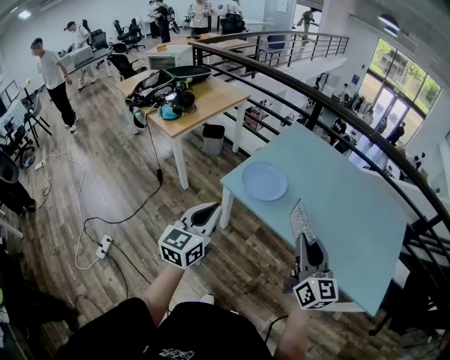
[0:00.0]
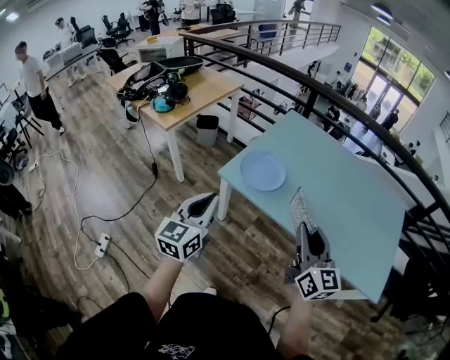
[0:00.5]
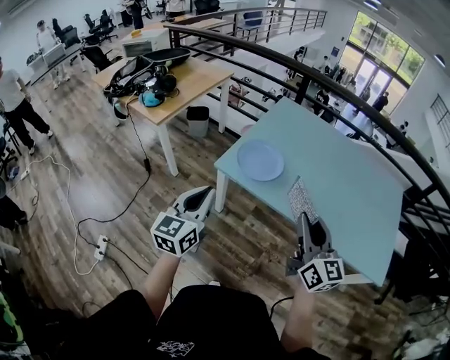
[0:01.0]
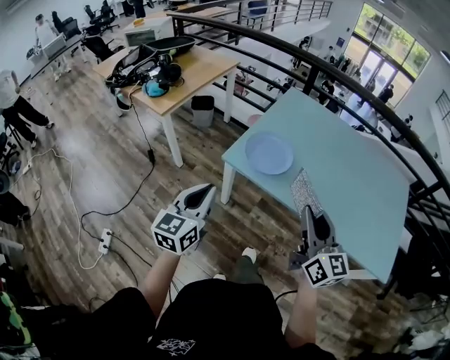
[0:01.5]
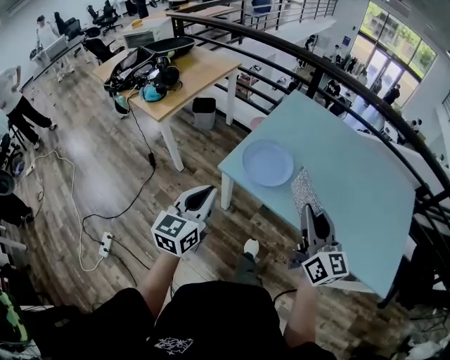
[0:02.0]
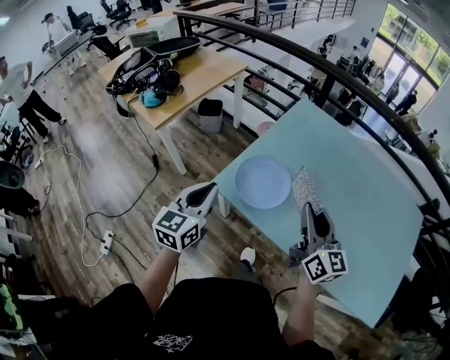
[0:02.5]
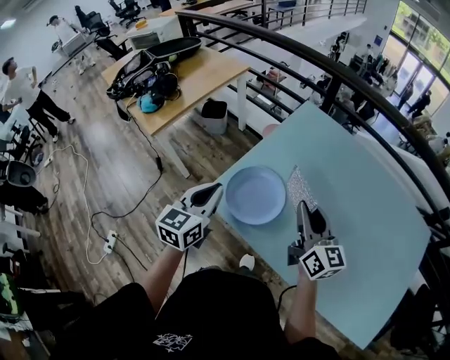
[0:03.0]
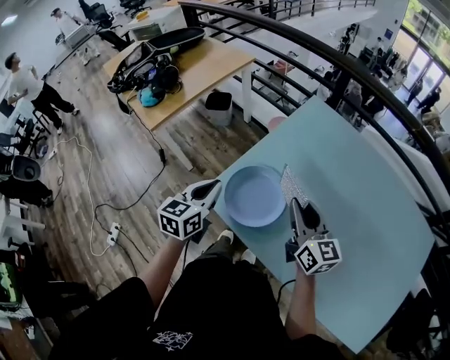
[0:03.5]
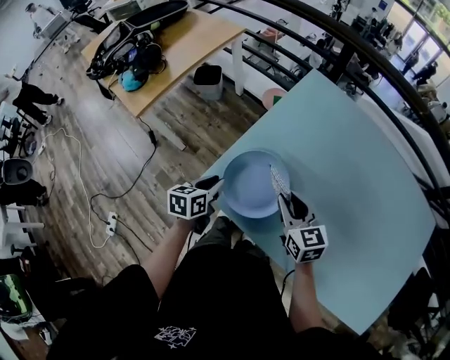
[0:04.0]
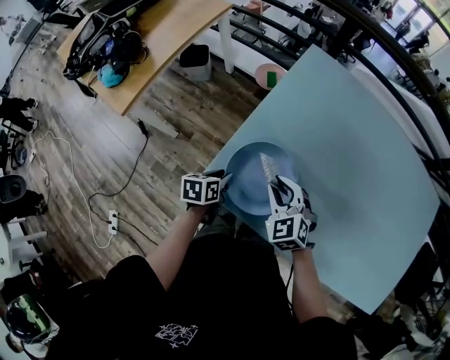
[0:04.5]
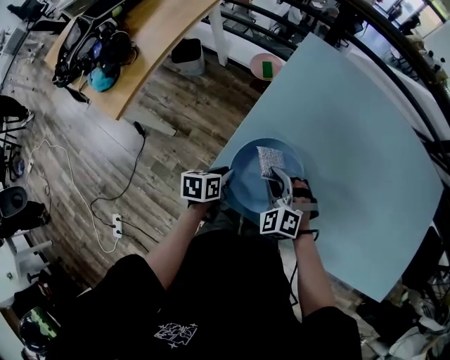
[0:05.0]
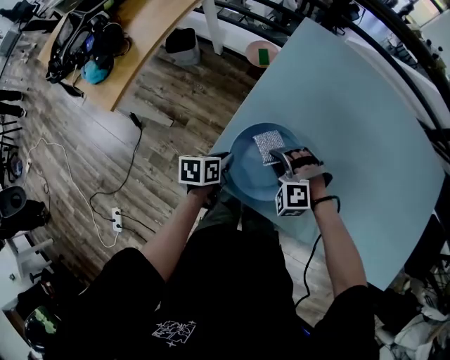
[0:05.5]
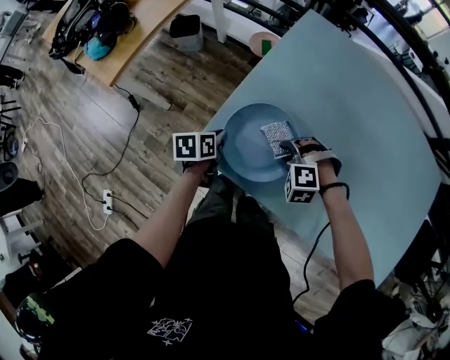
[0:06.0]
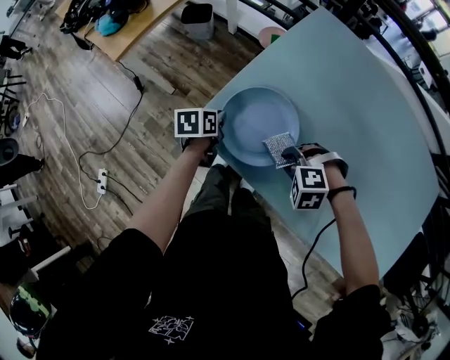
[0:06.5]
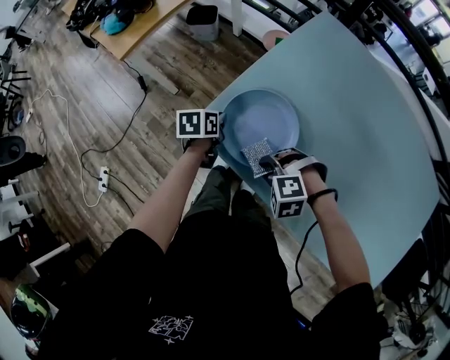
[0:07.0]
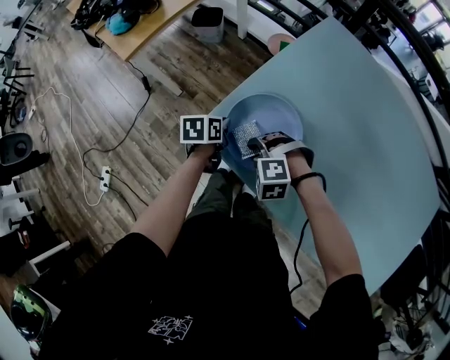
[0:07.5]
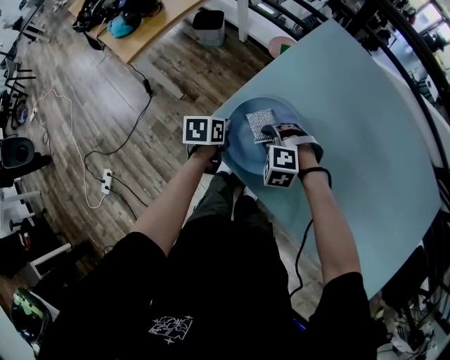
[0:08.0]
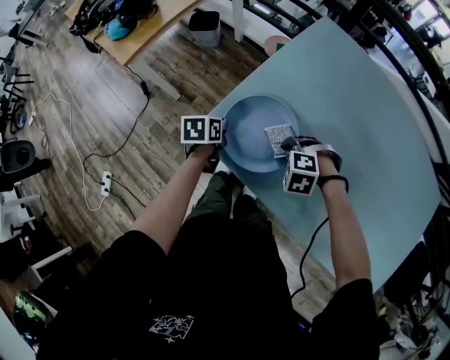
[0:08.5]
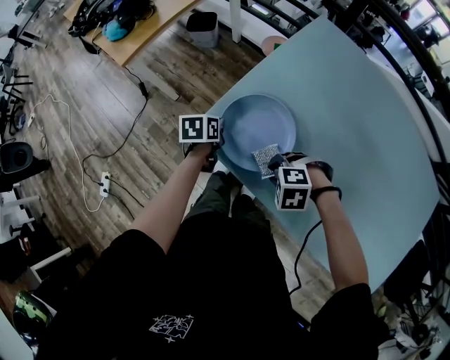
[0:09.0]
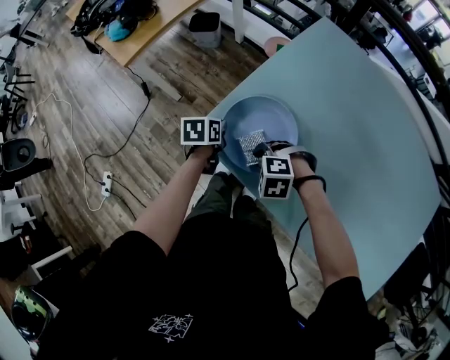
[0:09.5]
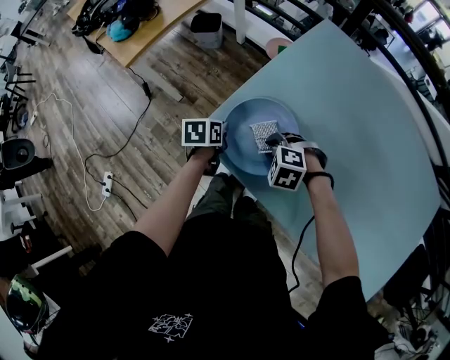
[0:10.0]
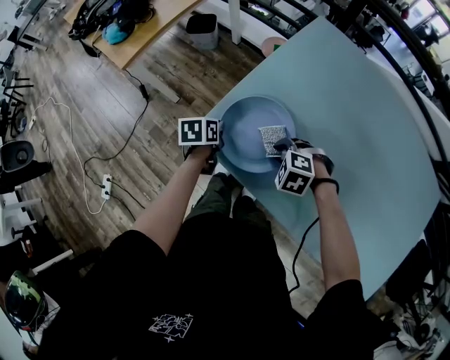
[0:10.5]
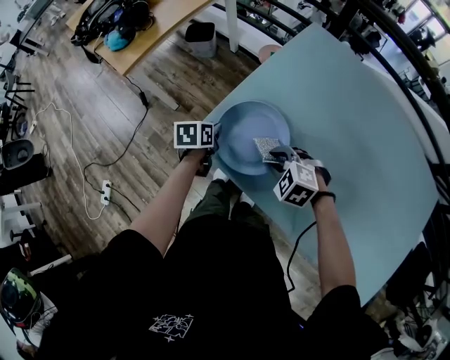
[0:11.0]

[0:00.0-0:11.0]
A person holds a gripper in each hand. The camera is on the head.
0:00.0 to 0:02.0: The right gripper shifts about 10 cm forward. The left gripper goes approximately 10 cm forward, downward and to the left.
0:02.0 to 0:03.5: The left gripper is displaced forward and to the right by roughly 30 cm, while the right gripper travels forward by approximately 30 cm.
0:03.5 to 0:05.5: The left gripper goes some 25 cm downward, rotates about 40 degrees, and opens, then closes again; the right gripper travels downward and to the left by about 30 cm, and twists about 80 degrees counterclockwise, seen from behind.
0:05.5 to 0:07.5: The right gripper ends up approximately 10 cm from where it was, and swivels some 20 degrees.
0:07.5 to 0:09.0: The right gripper ends up about 10 cm from where it was.
0:09.0 to 0:11.0: The right gripper turns by roughly 30 degrees.

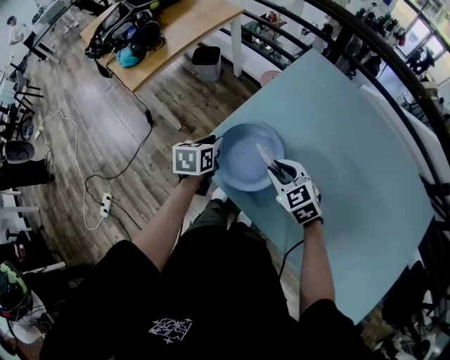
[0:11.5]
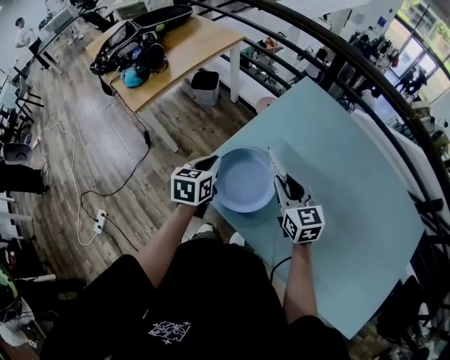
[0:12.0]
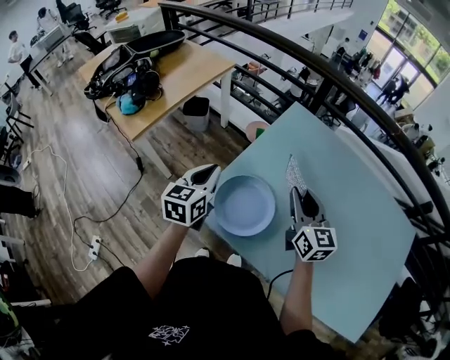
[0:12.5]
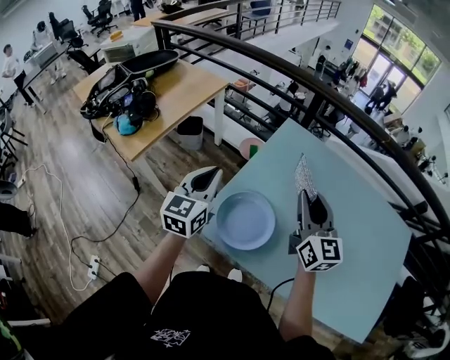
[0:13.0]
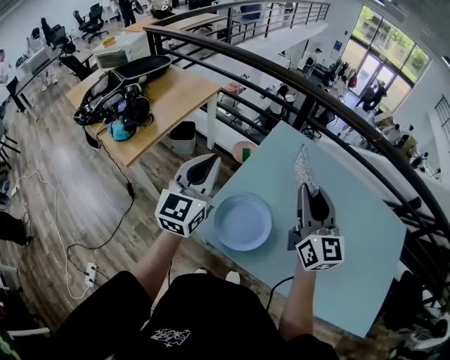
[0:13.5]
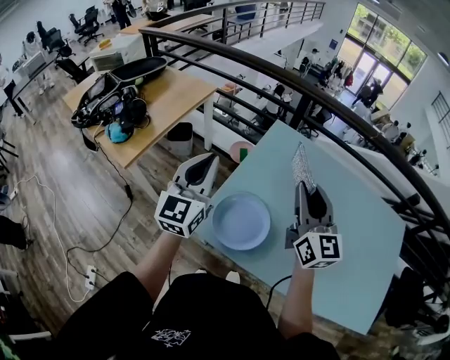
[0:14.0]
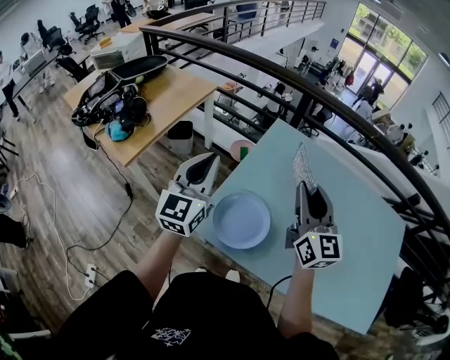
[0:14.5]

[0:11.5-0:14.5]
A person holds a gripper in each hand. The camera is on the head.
0:11.5 to 0:13.0: Both grippers move upward, about 25 cm. The left gripper tilts its fingers roughly 40 degrees upward. The right gripper tips its fingers upward by some 40 degrees.
0:13.0 to 0:14.5: The grippers both shift upward by approximately 5 cm.

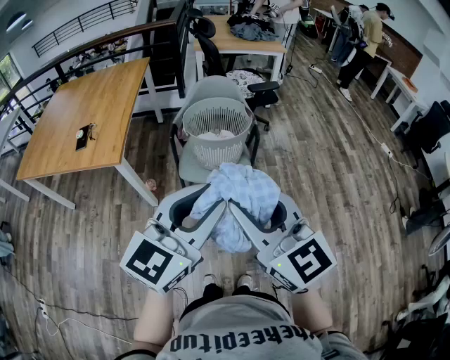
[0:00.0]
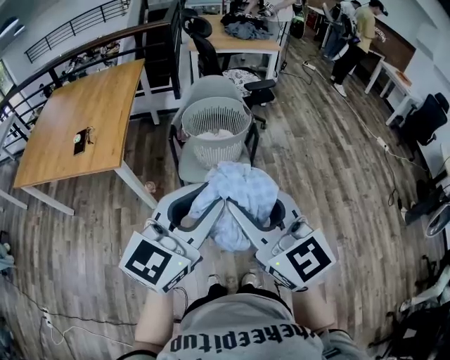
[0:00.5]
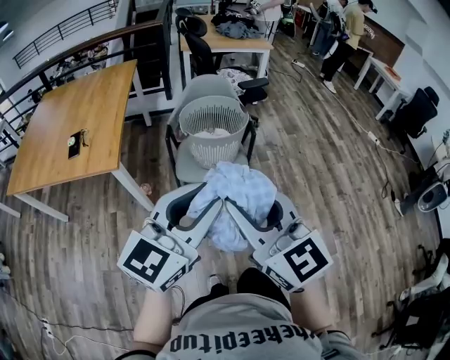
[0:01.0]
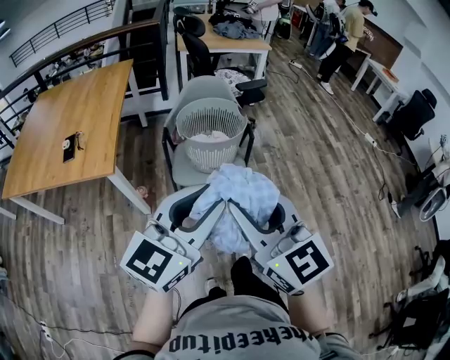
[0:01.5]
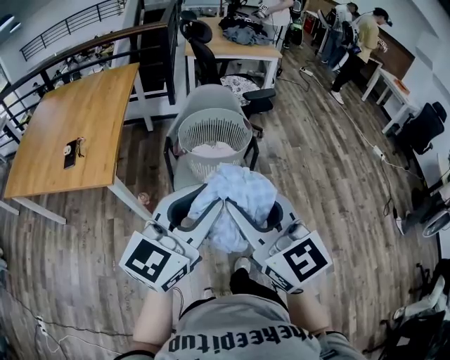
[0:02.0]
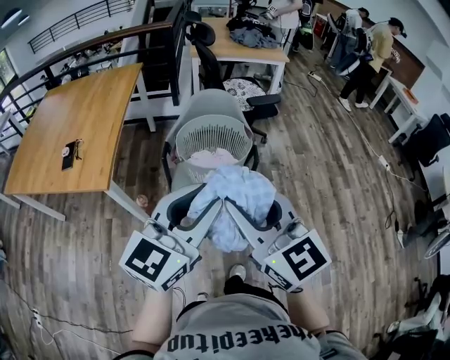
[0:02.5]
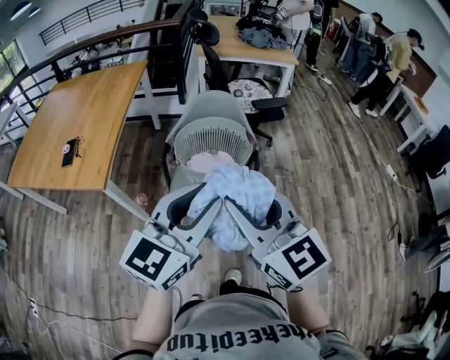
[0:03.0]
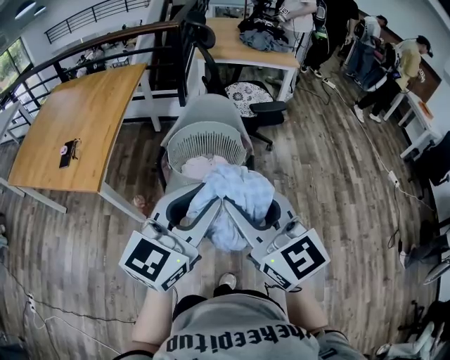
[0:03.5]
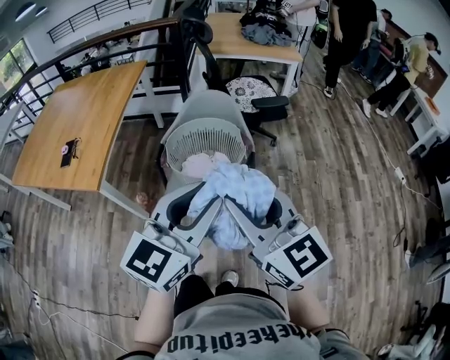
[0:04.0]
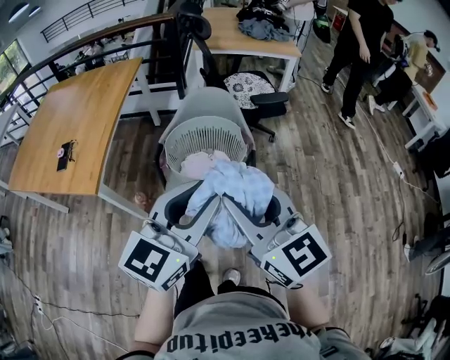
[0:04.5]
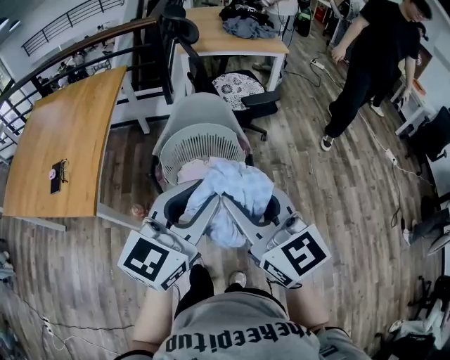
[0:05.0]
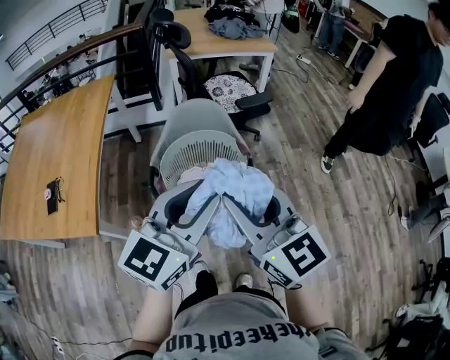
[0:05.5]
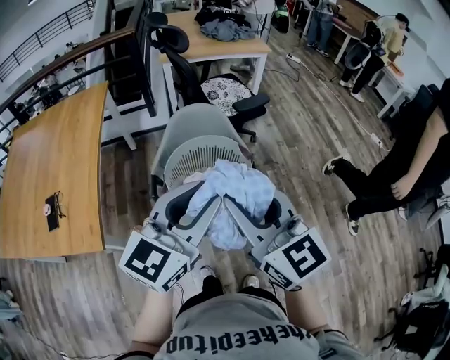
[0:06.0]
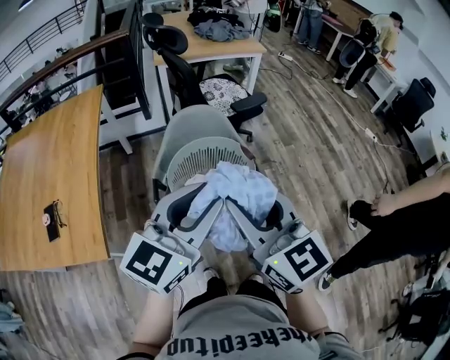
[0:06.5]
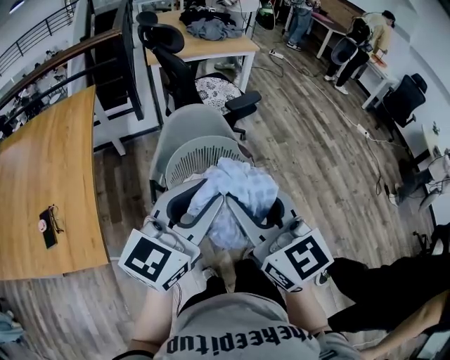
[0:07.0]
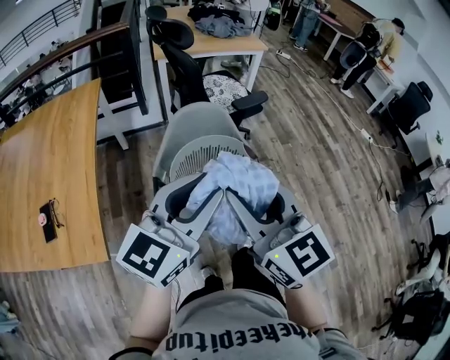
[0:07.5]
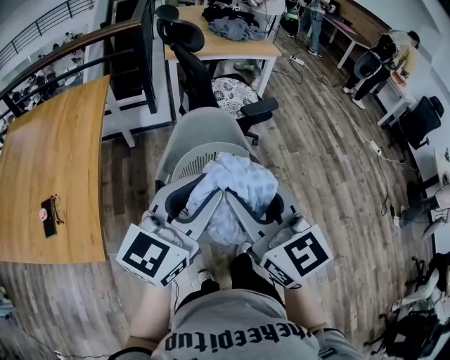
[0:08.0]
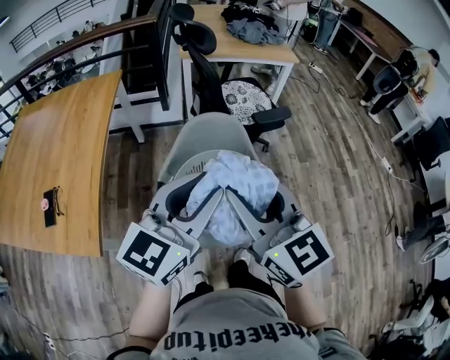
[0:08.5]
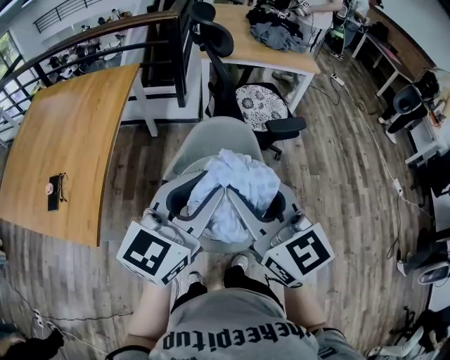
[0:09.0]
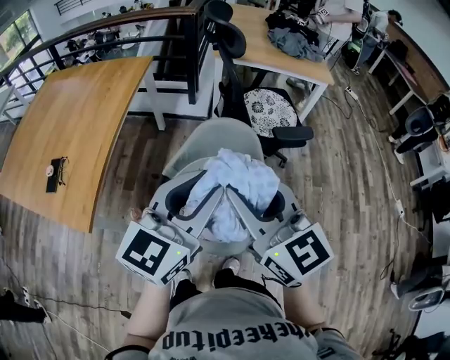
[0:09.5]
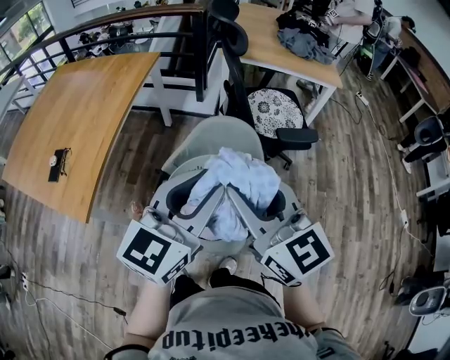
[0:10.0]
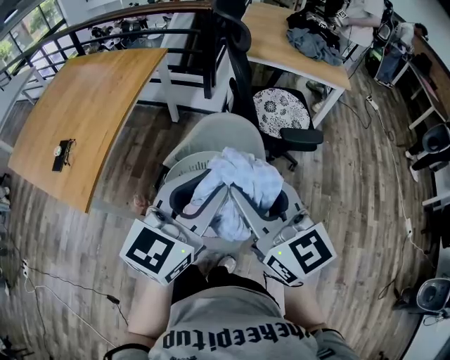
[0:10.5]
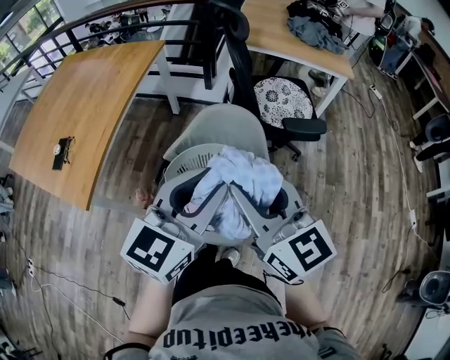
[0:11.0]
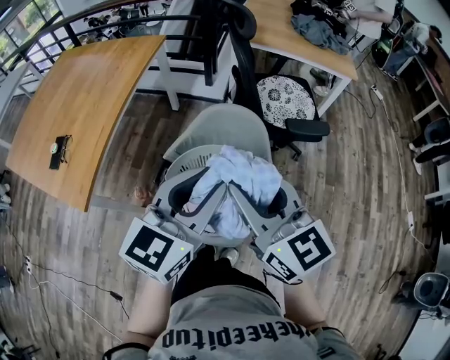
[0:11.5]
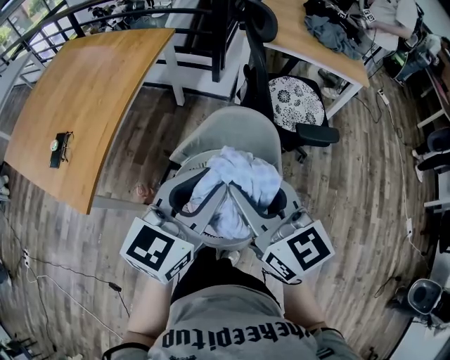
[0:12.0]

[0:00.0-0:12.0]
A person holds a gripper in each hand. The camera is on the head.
0:00.0 to 0:02.0: The two grippers go approximately 10 cm forward.
0:02.0 to 0:04.0: Both grippers travel together to the right and forward, about 15 cm.
0:04.0 to 0:06.0: The right gripper is displaced to the left and forward by roughly 15 cm; the left gripper travels forward and to the left by about 15 cm.
0:06.0 to 0:08.0: The grippers both shift forward by some 5 cm.
0:08.0 to 0:10.0: The right gripper heads forward and to the right, covering about 10 cm, and swivels approximately 20 degrees. Meanwhile the left gripper is displaced to the right and forward by approximately 10 cm, and changes its angle by about 20 degrees.
0:10.0 to 0:12.0: The two grippers go approximately 5 cm forward.

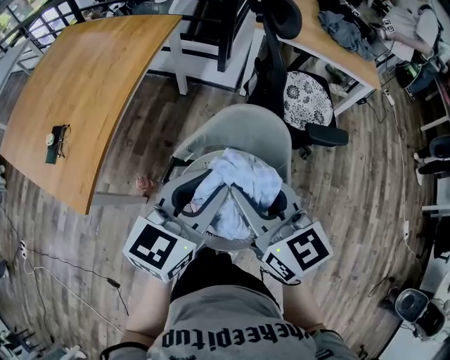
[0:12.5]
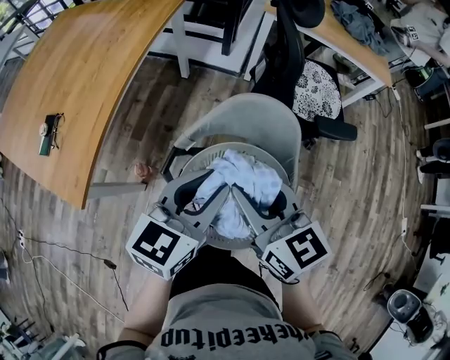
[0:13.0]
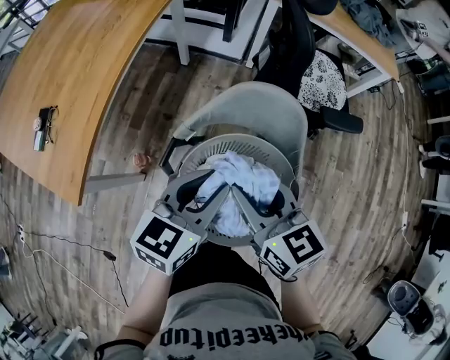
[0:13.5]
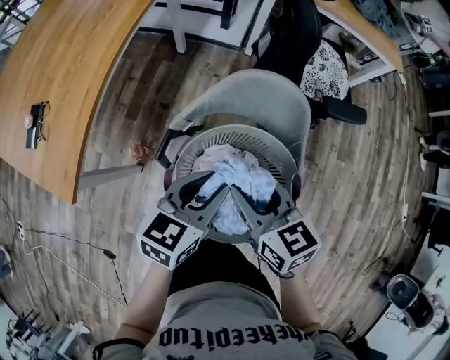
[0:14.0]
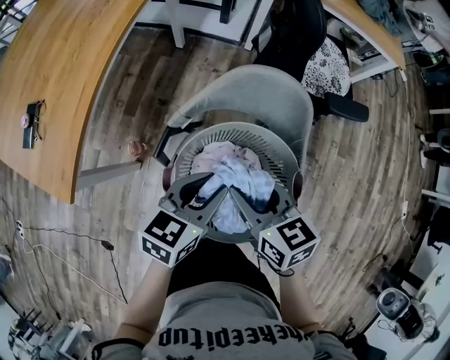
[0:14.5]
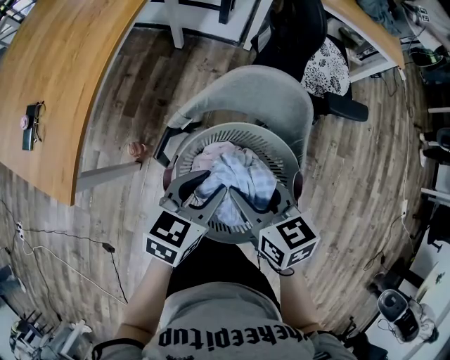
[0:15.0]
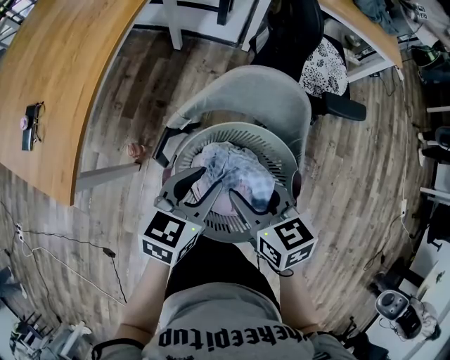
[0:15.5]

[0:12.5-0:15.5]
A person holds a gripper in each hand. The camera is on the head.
0:12.5 to 0:14.0: The grippers both shift downward by some 15 cm. The right gripper rotates some 20 degrees.
0:14.0 to 0:15.5: The grippers stay close to where they were, moving slightly.
